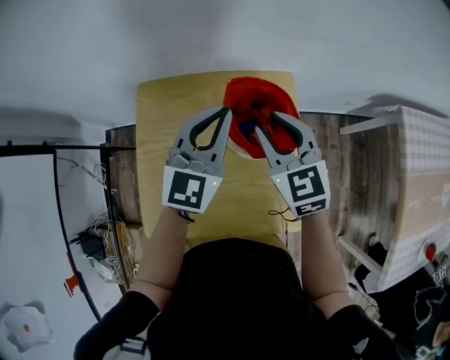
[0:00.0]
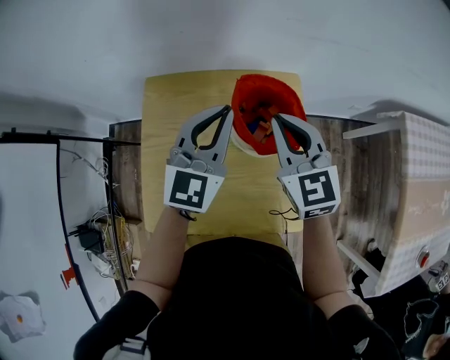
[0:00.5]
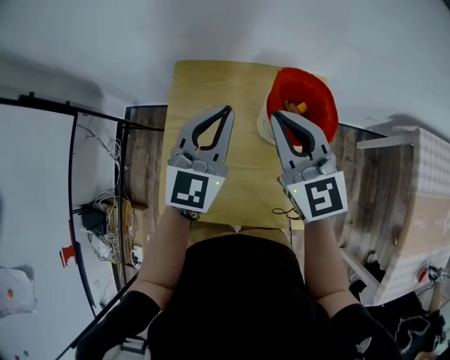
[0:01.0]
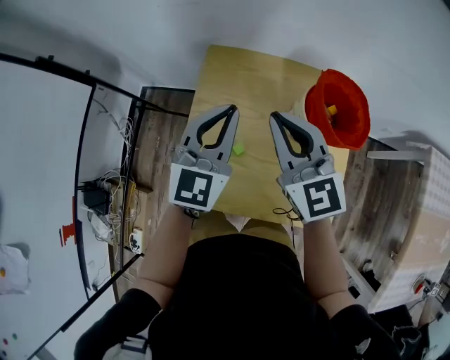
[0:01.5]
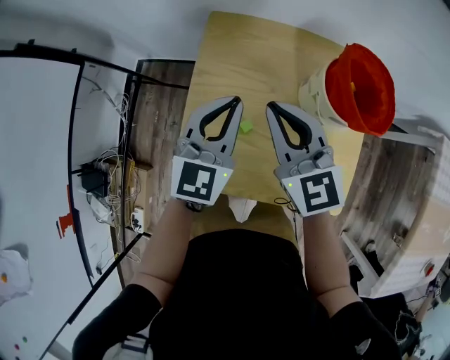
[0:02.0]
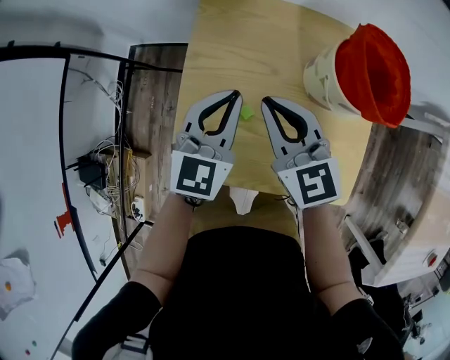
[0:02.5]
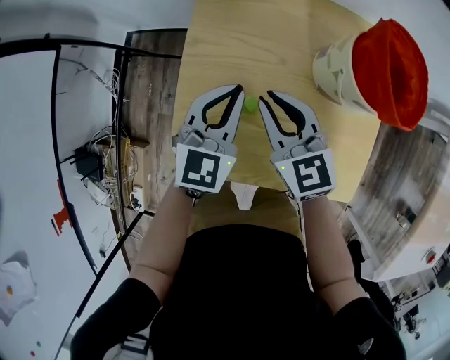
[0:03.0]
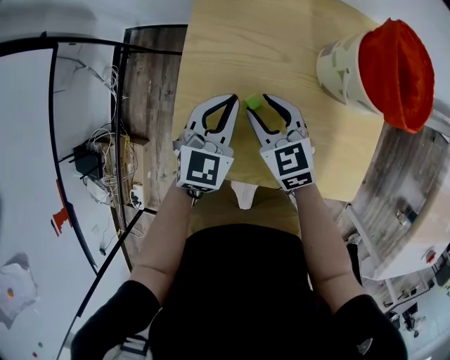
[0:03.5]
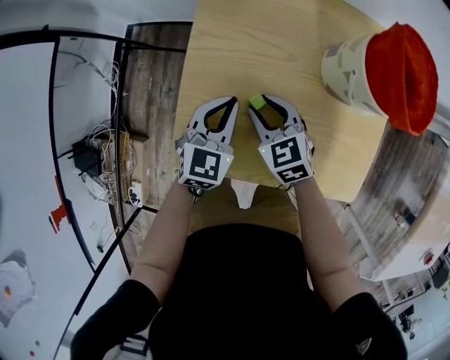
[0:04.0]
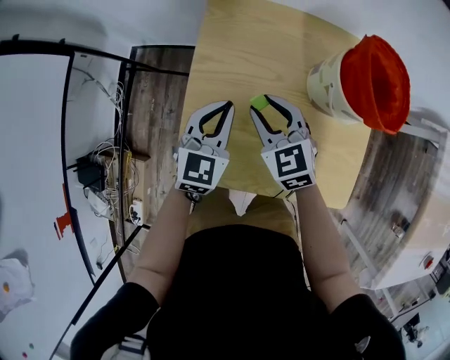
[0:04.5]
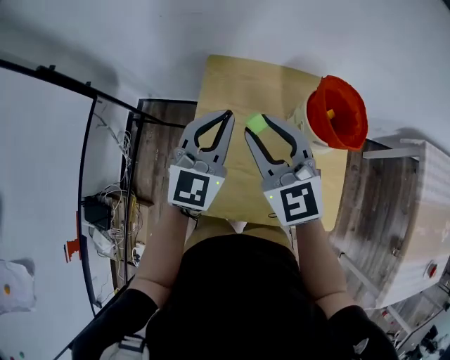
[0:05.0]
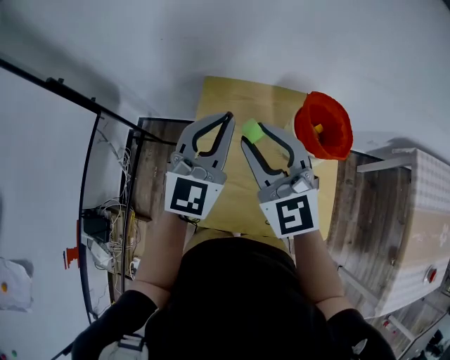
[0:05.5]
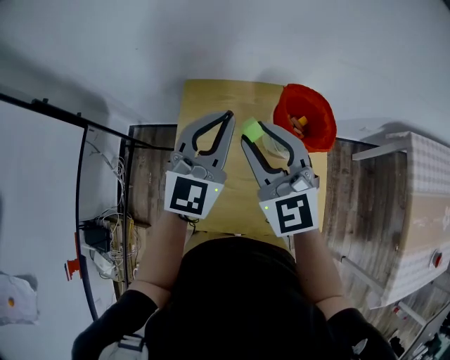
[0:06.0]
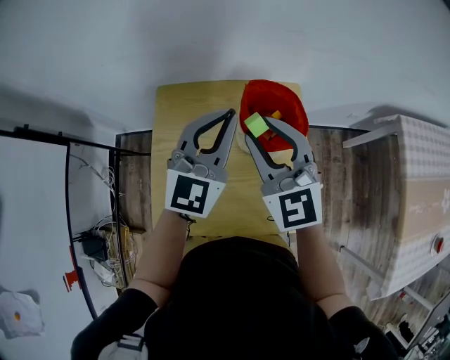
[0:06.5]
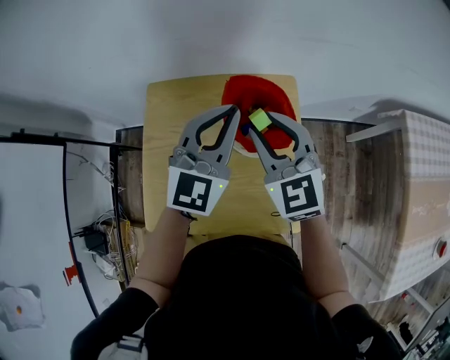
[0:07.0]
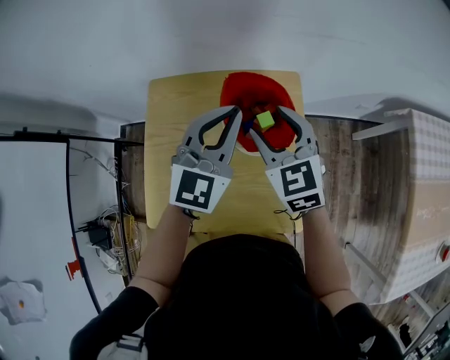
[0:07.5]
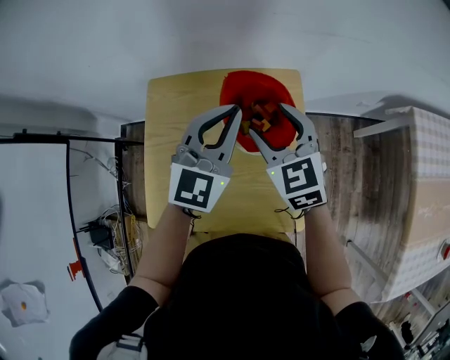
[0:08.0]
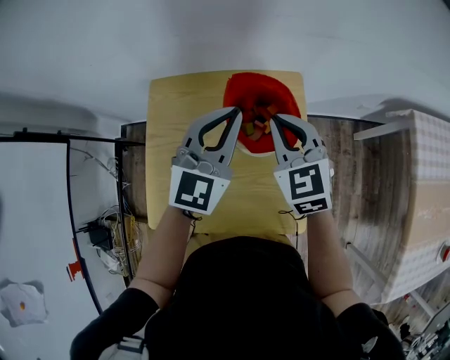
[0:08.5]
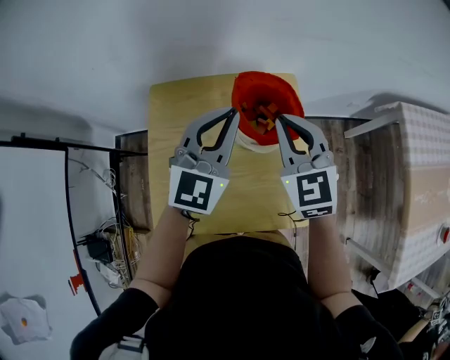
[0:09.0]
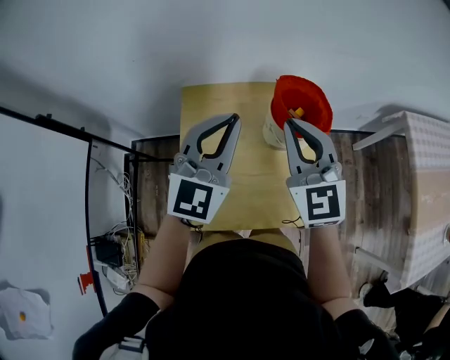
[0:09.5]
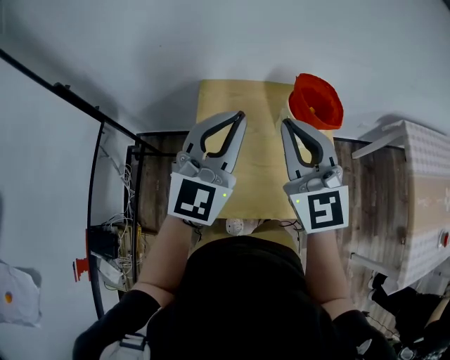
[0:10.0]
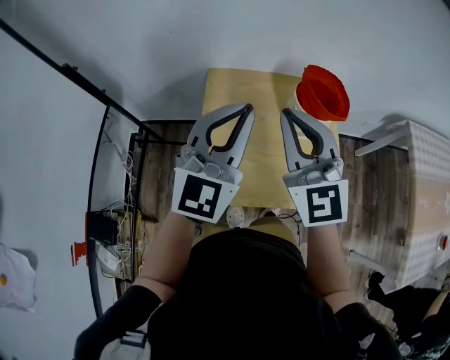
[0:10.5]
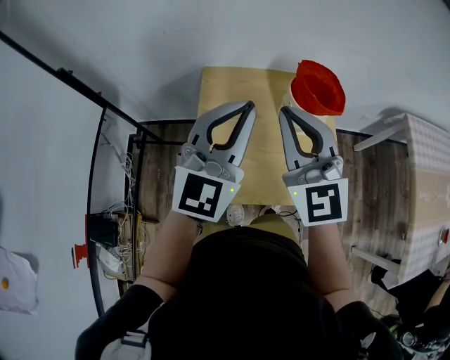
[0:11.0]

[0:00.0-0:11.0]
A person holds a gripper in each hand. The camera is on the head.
0:00.0 to 0:02.0: The right gripper is displaced to the left by roughly 20 cm, and closes up. Meanwhile the left gripper moves to the left and backward, about 20 cm.
0:02.0 to 0:03.5: The two grippers go roughly 15 cm downward. The right gripper rotates some 20 degrees, and opens up.
0:03.5 to 0:05.5: Both grippers move upward, roughly 30 cm. The left gripper rotates roughly 30 degrees. The right gripper swivels about 40 degrees.
0:05.5 to 0:07.5: The left gripper goes approximately 20 cm to the right. Meanwhile the right gripper is displaced to the right and downward by about 25 cm, and rotates some 20 degrees.
0:07.5 to 0:09.0: The right gripper closes its fingers.
0:09.0 to 0:11.0: The right gripper goes roughly 25 cm to the left, backward and upward, and swivels some 20 degrees. Meanwhile the left gripper shifts some 25 cm backward, to the left and upward.

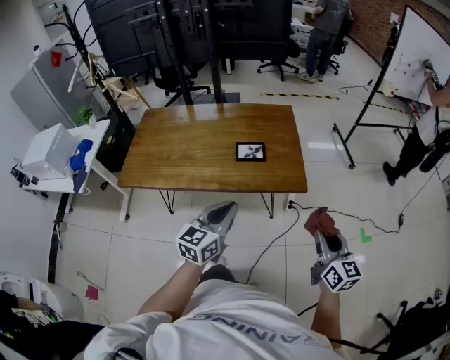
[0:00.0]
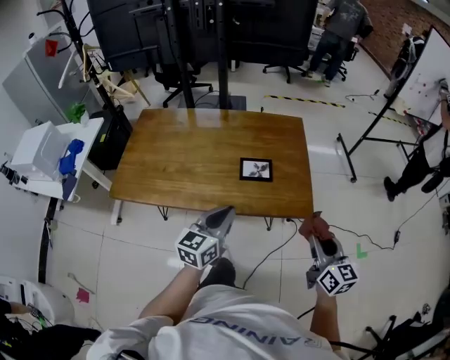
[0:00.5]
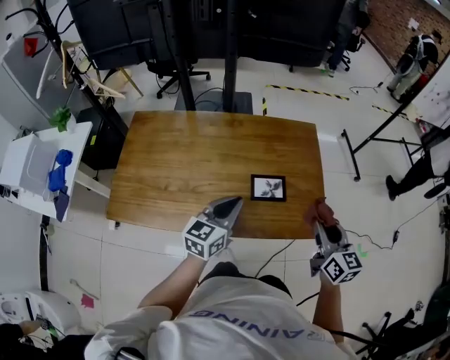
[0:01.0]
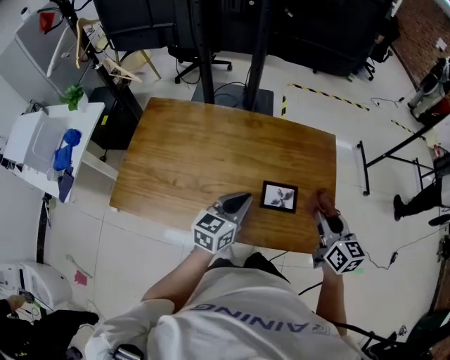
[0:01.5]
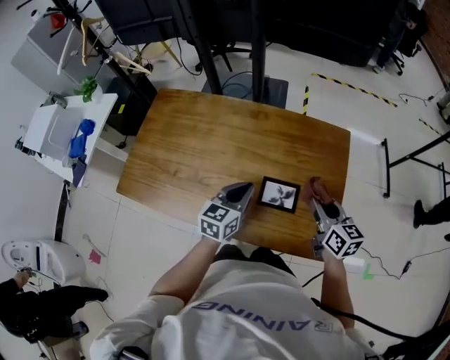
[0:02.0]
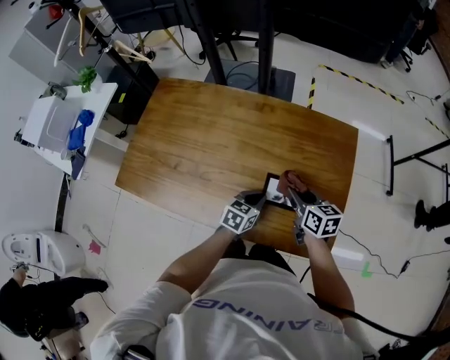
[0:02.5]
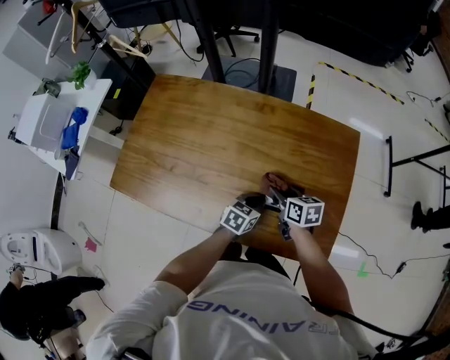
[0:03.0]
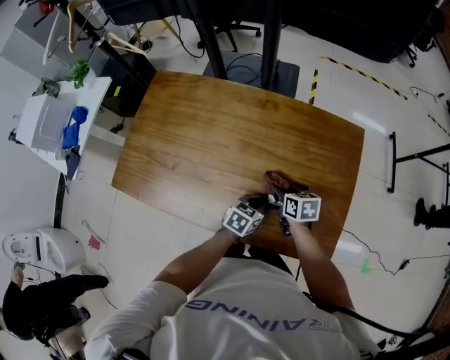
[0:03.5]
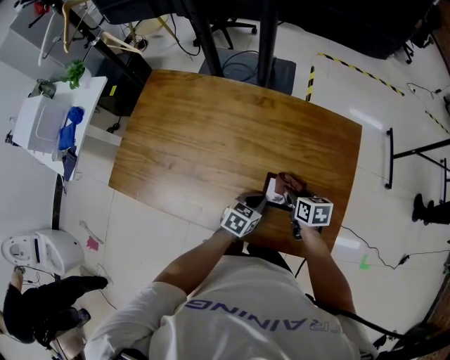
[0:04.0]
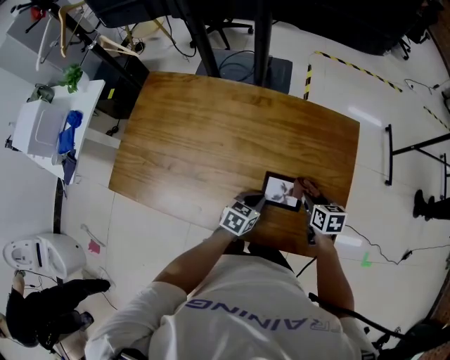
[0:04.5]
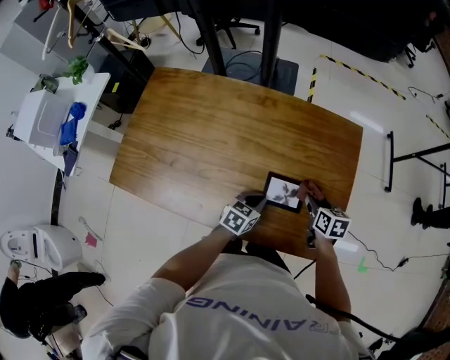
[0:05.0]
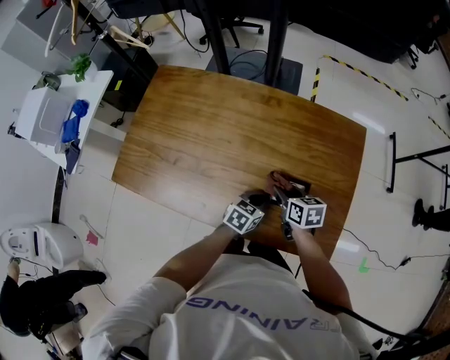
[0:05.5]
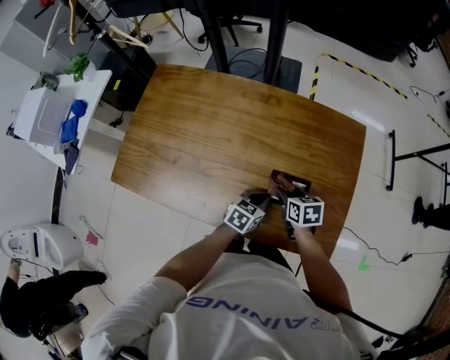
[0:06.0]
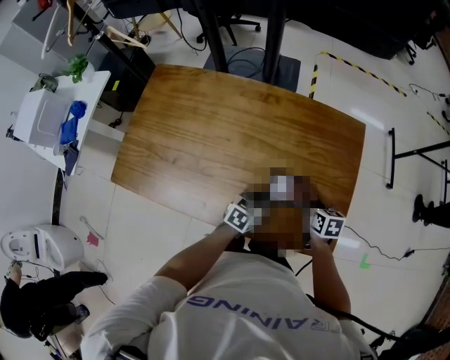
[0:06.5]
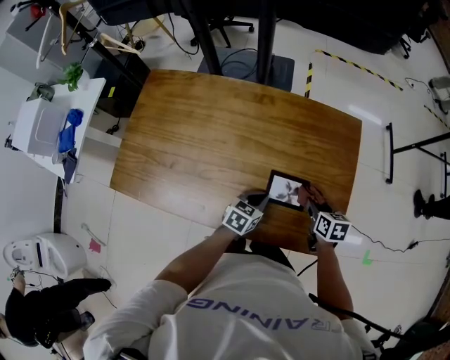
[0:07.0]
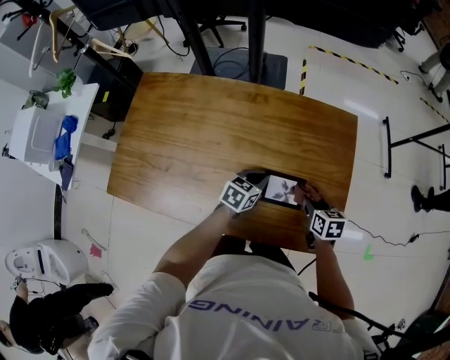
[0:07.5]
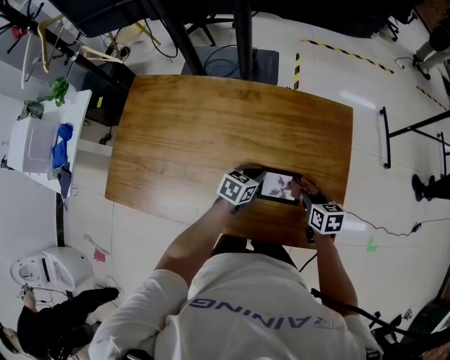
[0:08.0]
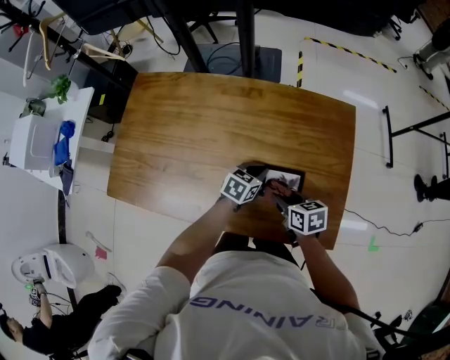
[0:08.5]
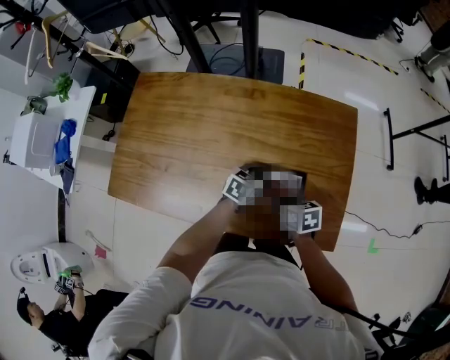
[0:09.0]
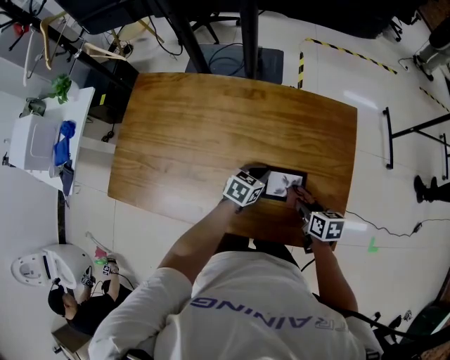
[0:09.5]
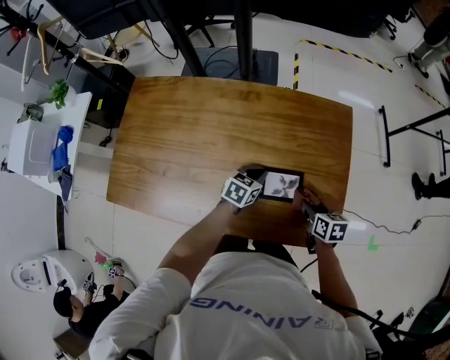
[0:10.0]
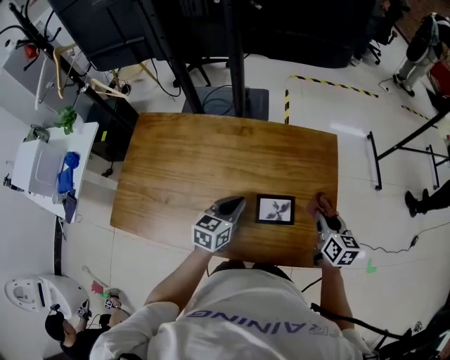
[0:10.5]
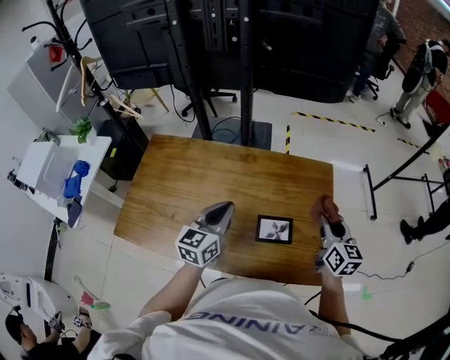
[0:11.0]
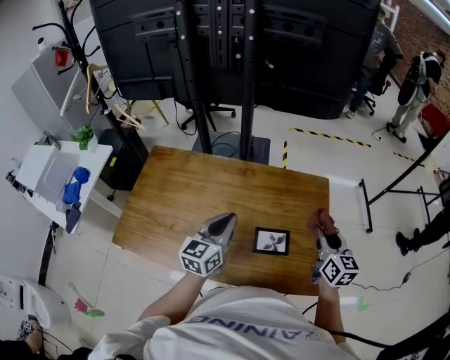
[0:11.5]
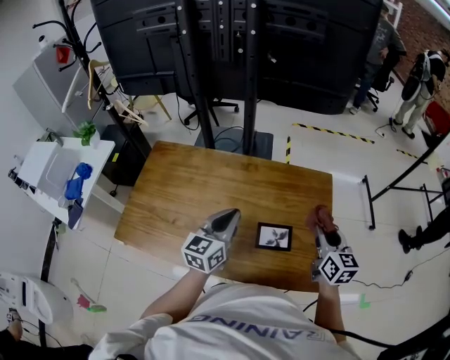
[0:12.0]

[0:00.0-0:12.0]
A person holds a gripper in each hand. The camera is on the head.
0:00.0 to 0:02.0: Both grippers move forward, some 40 cm. The right gripper turns by roughly 30 degrees.
0:02.0 to 0:04.0: The right gripper heads downward and to the left, covering about 20 cm, and turns by roughly 30 degrees. The left gripper heads downward, covering about 15 cm, and turns by approximately 20 degrees.
0:04.0 to 0:06.0: The right gripper moves roughly 10 cm to the right and comes back.
0:06.0 to 0:08.0: The right gripper moves to the right, some 10 cm. Meanwhile the left gripper is displaced forward by approximately 10 cm.
0:08.0 to 0:10.0: The right gripper reaches roughly 10 cm to the left, then returns.
0:10.0 to 0:12.0: Both grippers travel together upward, roughly 25 cm. The right gripper angles its fingers upward, by roughly 30 degrees. The left gripper angles its fingers upward, by roughly 30 degrees.

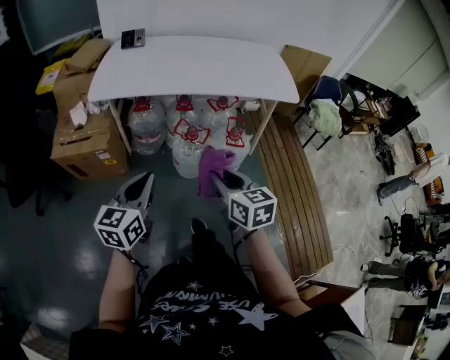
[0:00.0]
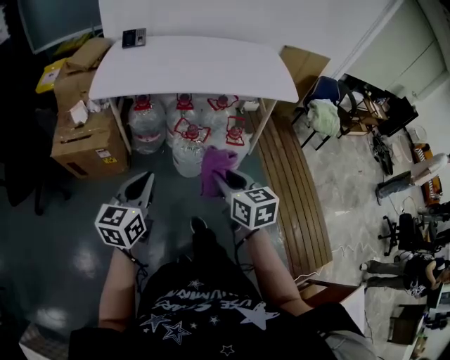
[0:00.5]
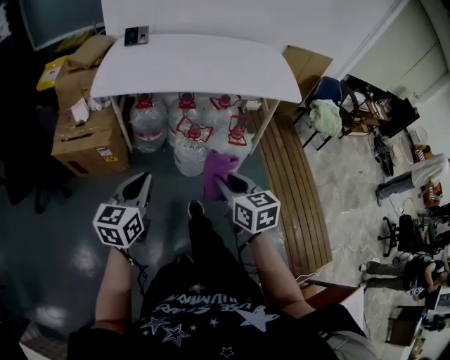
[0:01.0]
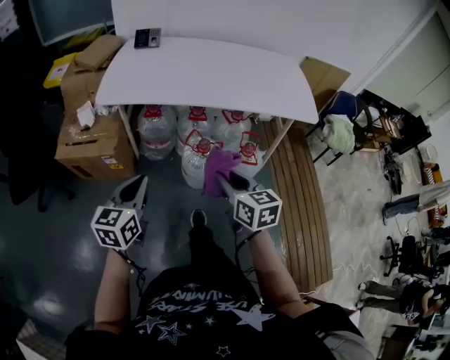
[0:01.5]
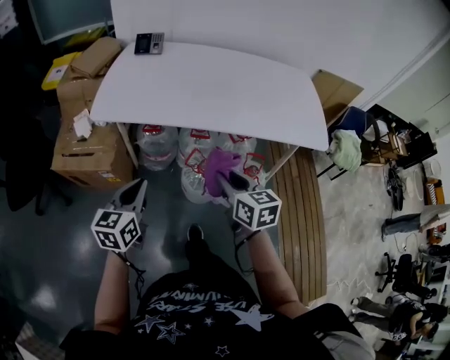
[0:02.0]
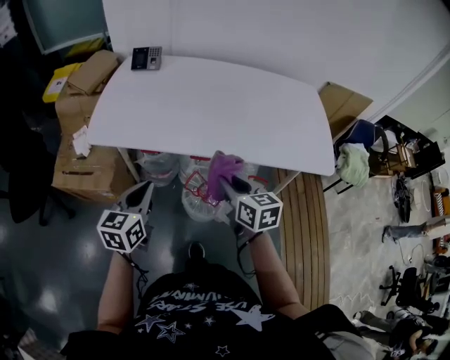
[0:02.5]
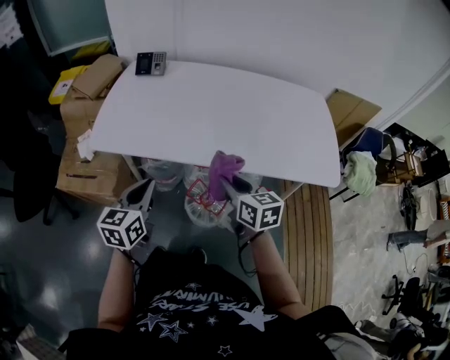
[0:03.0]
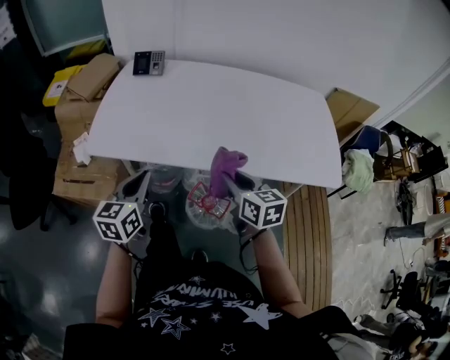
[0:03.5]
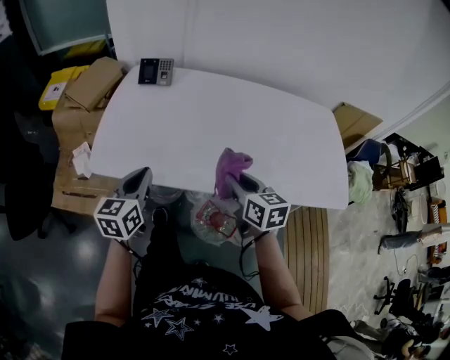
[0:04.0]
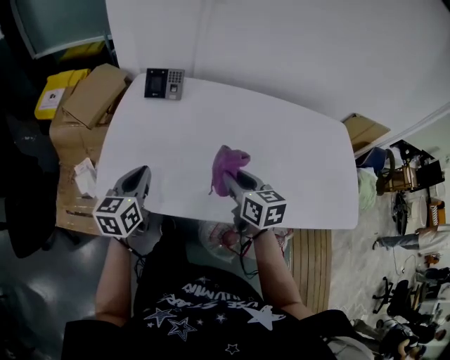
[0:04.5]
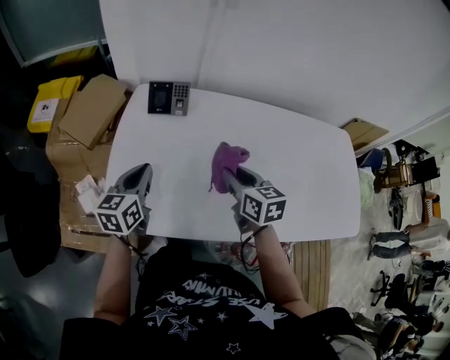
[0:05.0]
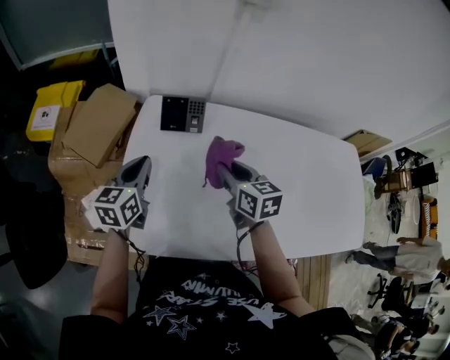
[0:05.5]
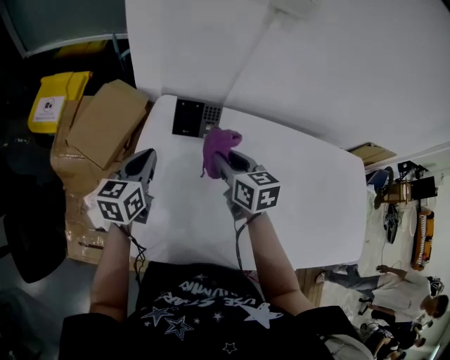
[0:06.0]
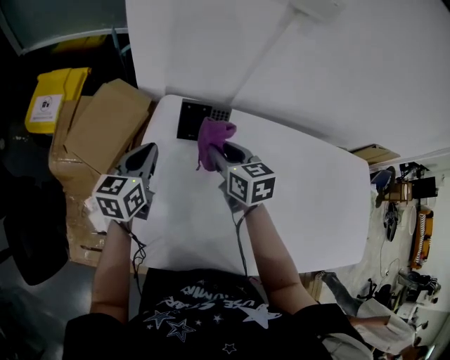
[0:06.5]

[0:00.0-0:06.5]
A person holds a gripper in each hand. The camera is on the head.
0:00.0 to 0:02.0: The two grippers go approximately 25 cm forward.
0:02.0 to 0:04.5: Both grippers are carried forward, some 40 cm.
0:04.5 to 0:06.5: Both grippers move forward and to the left, roughly 35 cm.
